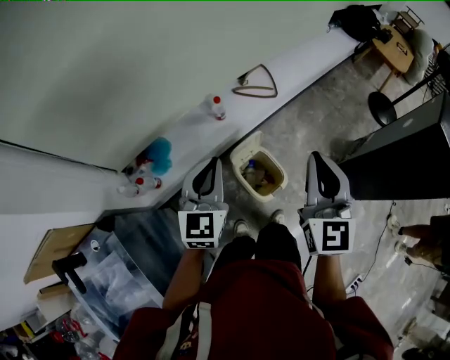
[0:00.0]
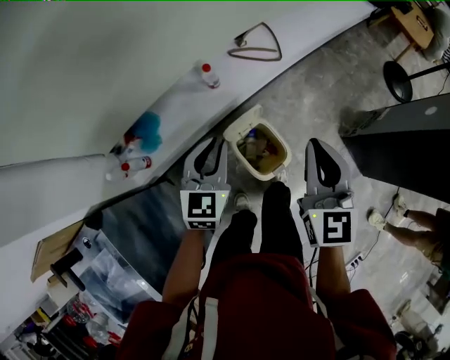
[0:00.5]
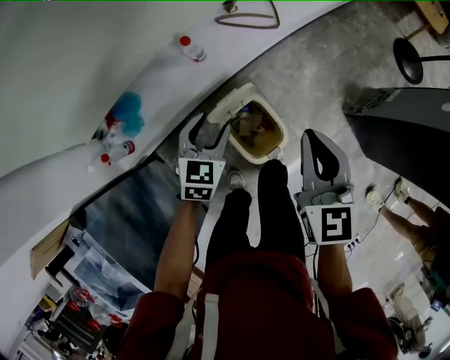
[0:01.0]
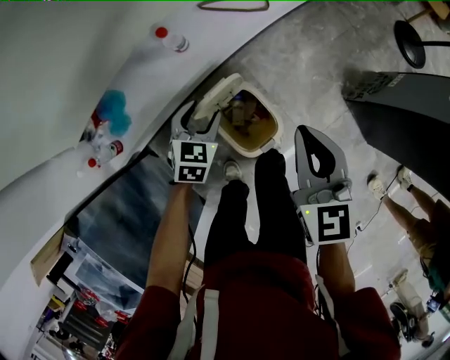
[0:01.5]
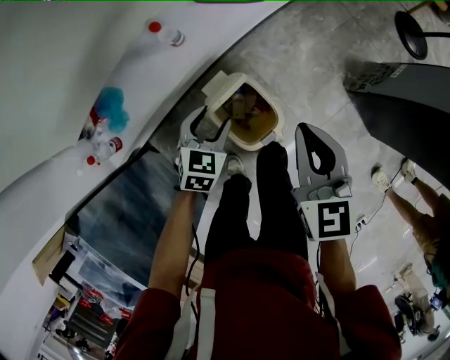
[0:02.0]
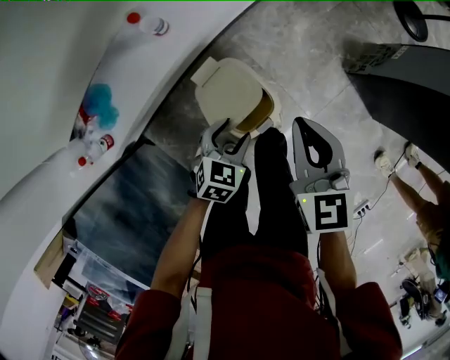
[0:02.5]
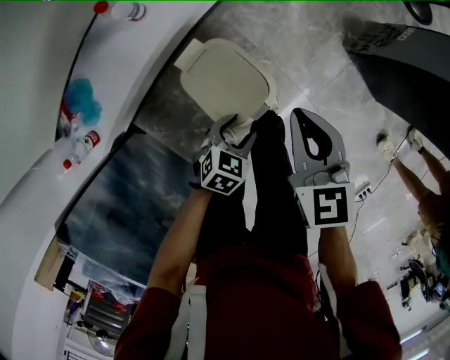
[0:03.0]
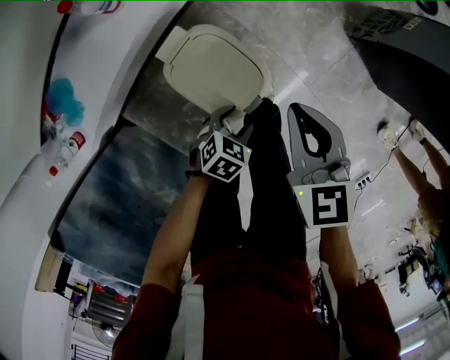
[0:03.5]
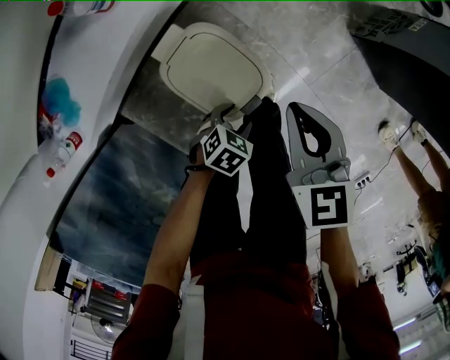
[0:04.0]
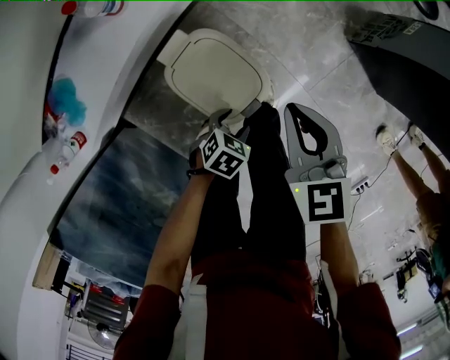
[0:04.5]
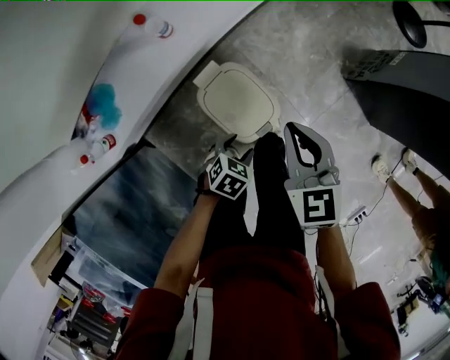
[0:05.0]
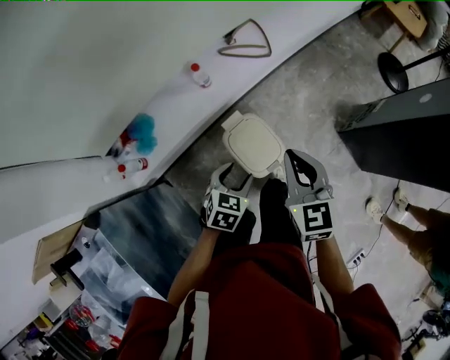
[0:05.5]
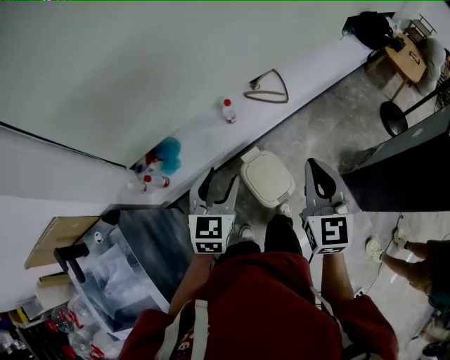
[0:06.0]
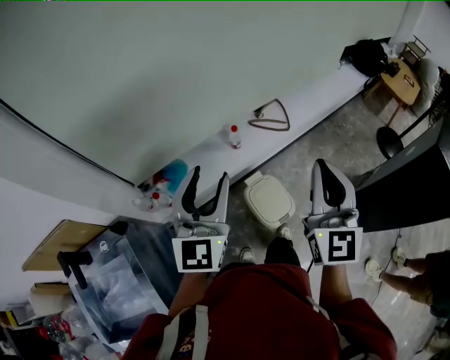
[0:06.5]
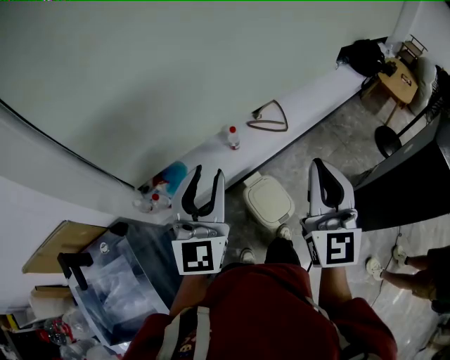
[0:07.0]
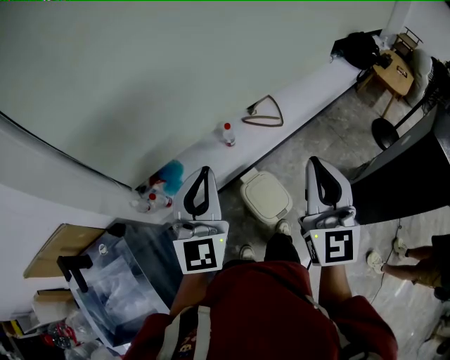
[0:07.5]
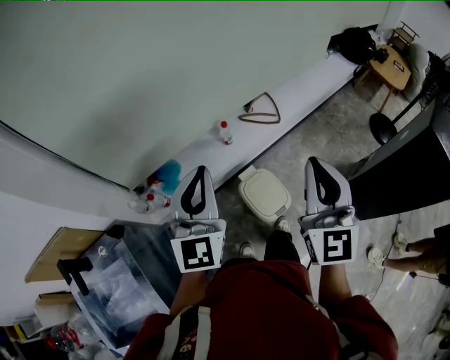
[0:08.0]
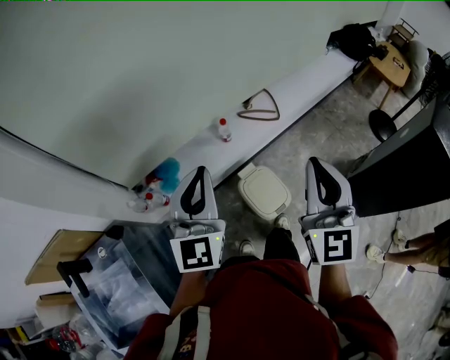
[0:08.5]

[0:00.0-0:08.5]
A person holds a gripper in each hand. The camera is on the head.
0:00.0 to 0:02.0: Both grippers move downward, some 30 cm. The left gripper points its fingers about 40 degrees further downward, and opens up. The right gripper rotates about 30 degrees.
0:02.0 to 0:04.0: Both grippers travel together downward, approximately 20 cm. The left gripper changes its angle by approximately 40 degrees.
0:04.0 to 0:06.5: Both grippers travel together upward, some 60 cm. The left gripper tips its fingers upward by about 70 degrees. Meanwhile the right gripper angles its fingers upward, by approximately 50 degrees.
0:06.5 to 0:08.5: The left gripper closes.

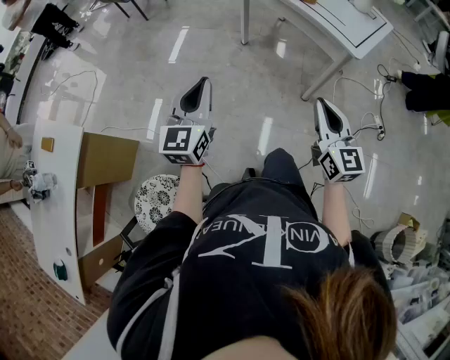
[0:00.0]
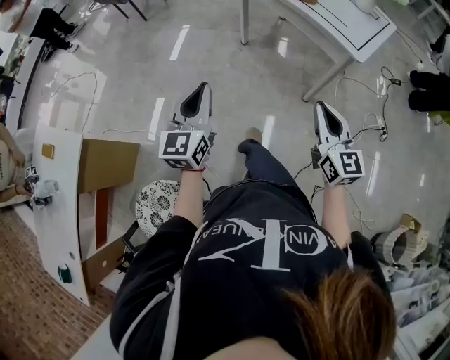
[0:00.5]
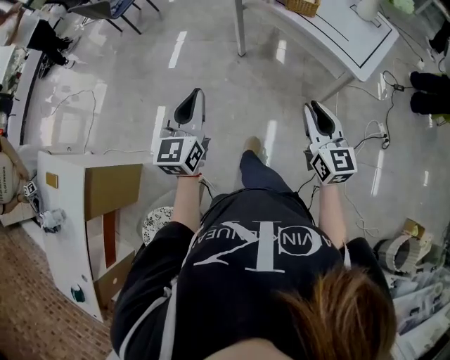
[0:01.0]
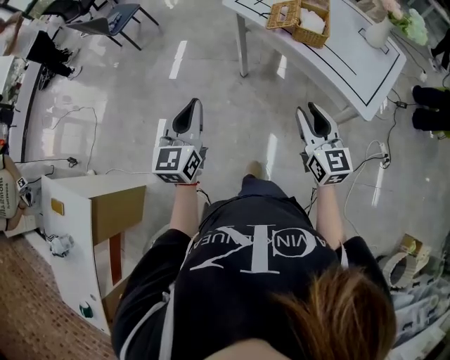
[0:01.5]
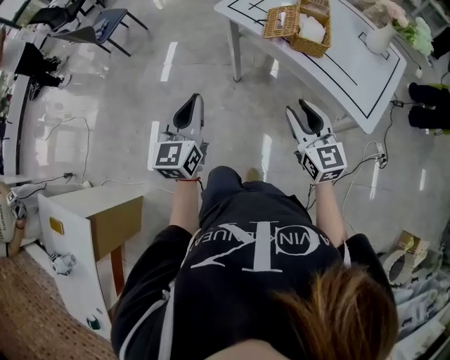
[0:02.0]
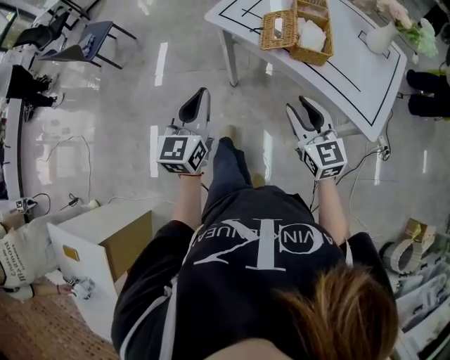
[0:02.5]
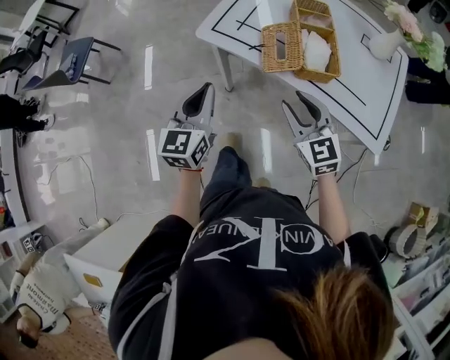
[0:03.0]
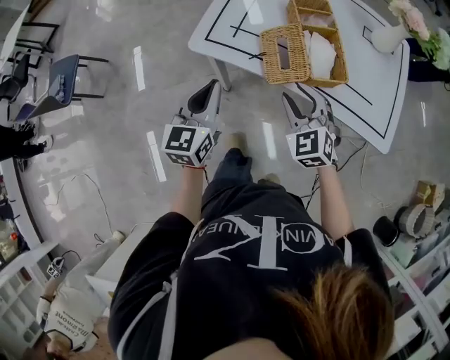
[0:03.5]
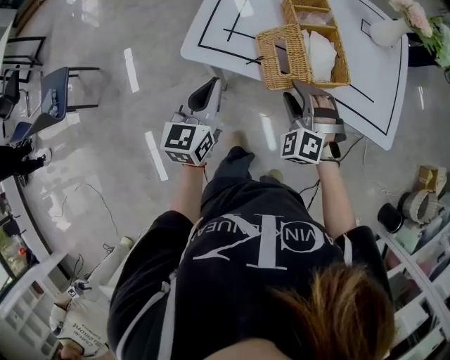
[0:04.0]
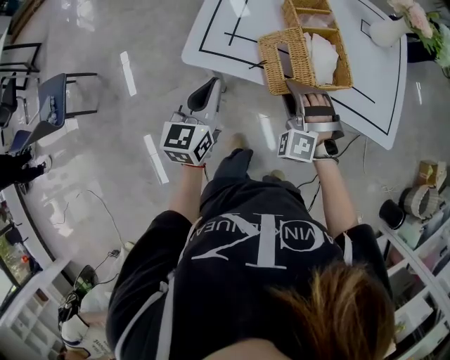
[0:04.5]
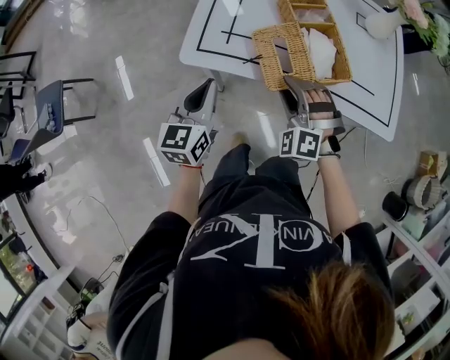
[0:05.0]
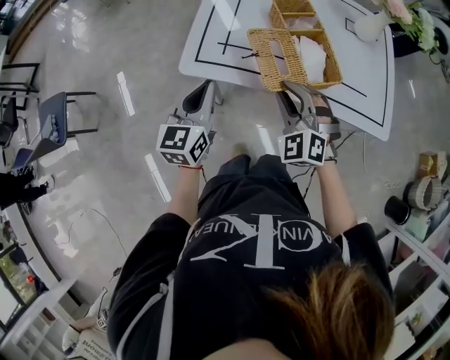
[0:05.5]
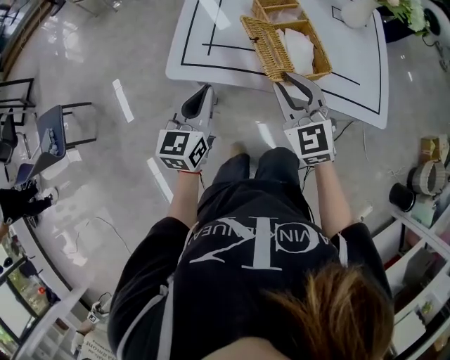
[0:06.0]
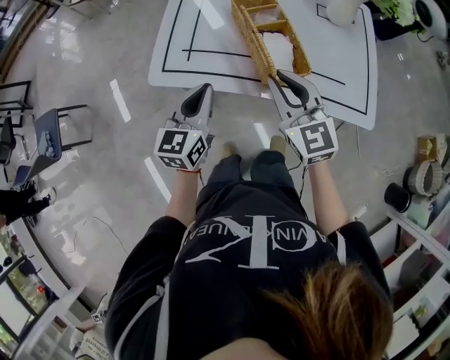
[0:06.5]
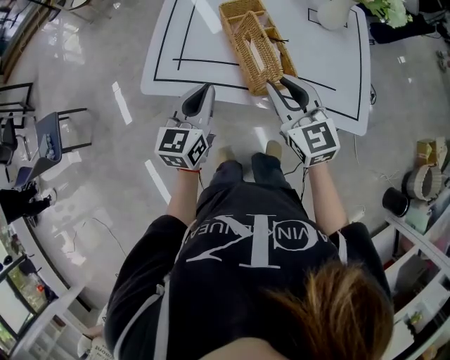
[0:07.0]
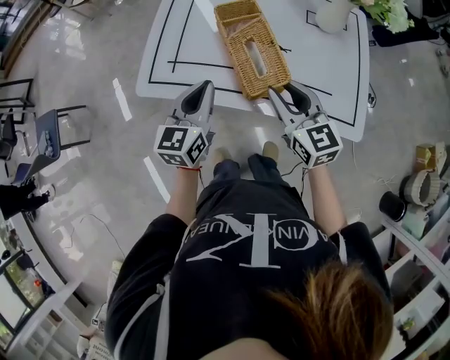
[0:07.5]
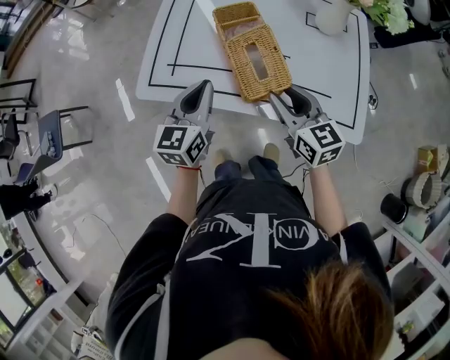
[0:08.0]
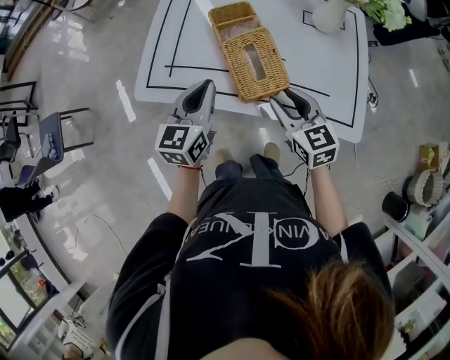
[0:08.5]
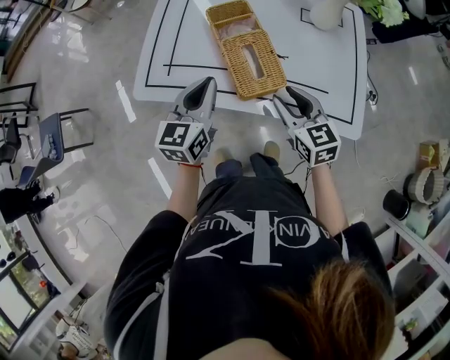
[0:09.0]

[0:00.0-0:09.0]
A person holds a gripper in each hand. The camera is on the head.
0:00.0 to 0:02.0: The two grippers go roughly 35 cm forward. The right gripper opens its fingers.
0:02.0 to 0:04.5: The left gripper shifts by roughly 40 cm, and changes its angle by approximately 30 degrees, while the right gripper moves roughly 35 cm, and rotates approximately 80 degrees.
0:04.5 to 0:07.0: The right gripper goes approximately 15 cm upward and to the right, twists some 70 degrees clockwise, seen from behind, and closes, while the left gripper moves to the right, roughly 15 cm.
0:07.0 to 0:09.0: The left gripper changes place by some 5 cm; the right gripper shifts some 10 cm to the right and downward.

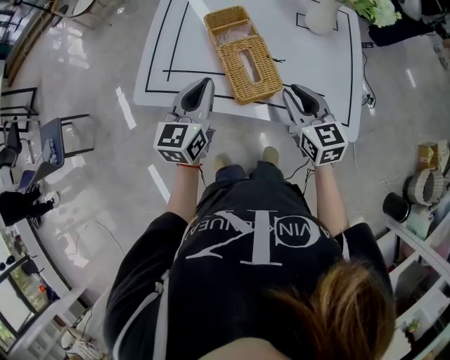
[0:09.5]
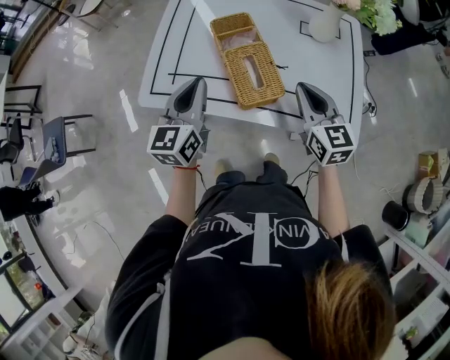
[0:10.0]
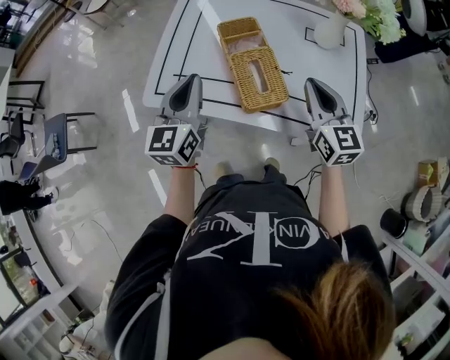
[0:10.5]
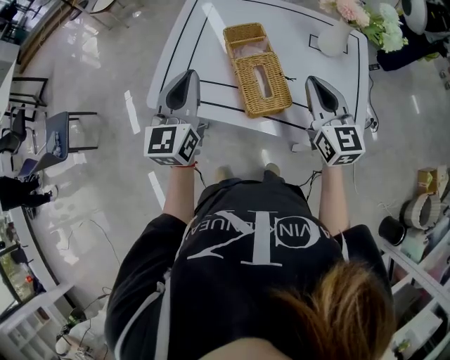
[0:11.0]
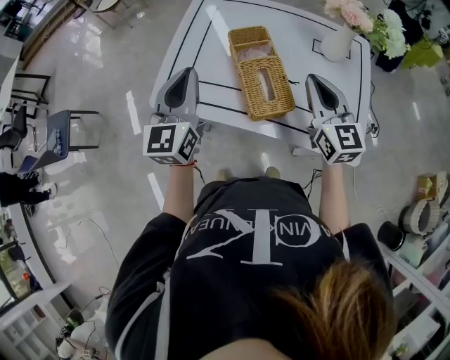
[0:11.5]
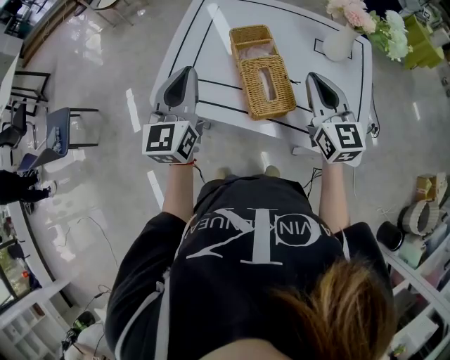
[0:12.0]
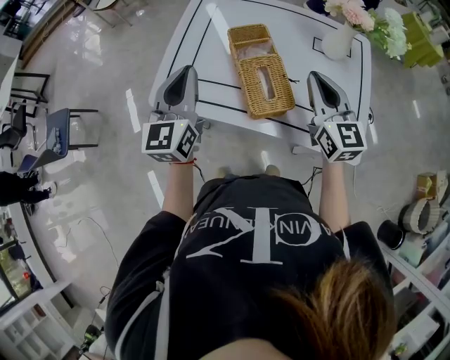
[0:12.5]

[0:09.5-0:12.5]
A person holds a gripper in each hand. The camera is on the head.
0:09.5 to 0:11.0: The right gripper moves upward, roughly 10 cm, and closes; the left gripper moves upward and to the left, approximately 10 cm.
0:11.0 to 0:12.5: The grippers move only a little.

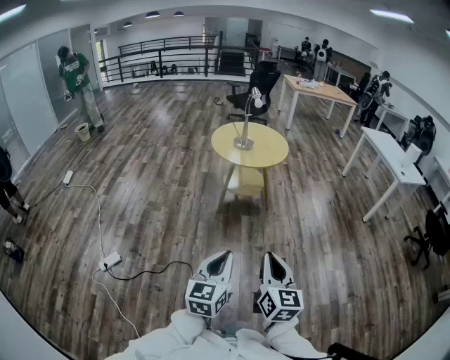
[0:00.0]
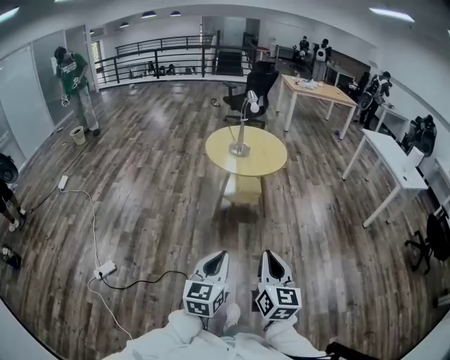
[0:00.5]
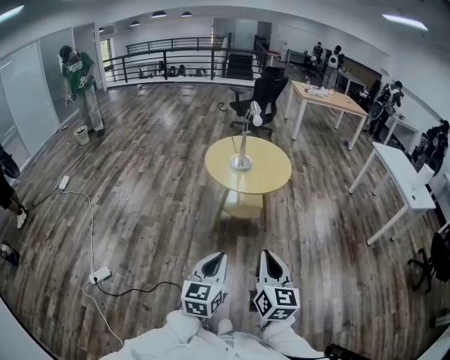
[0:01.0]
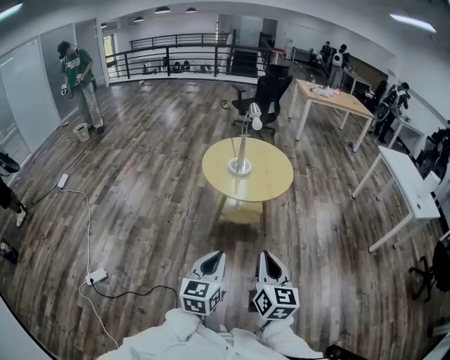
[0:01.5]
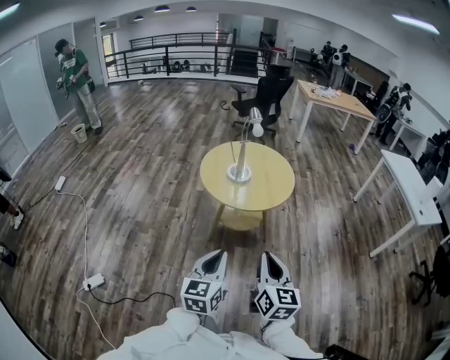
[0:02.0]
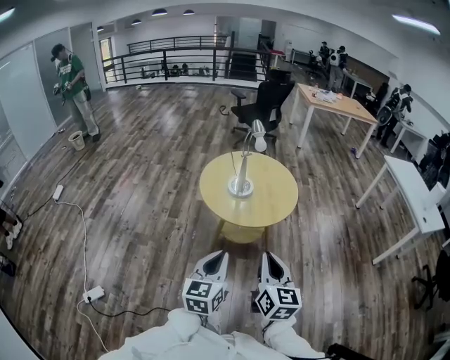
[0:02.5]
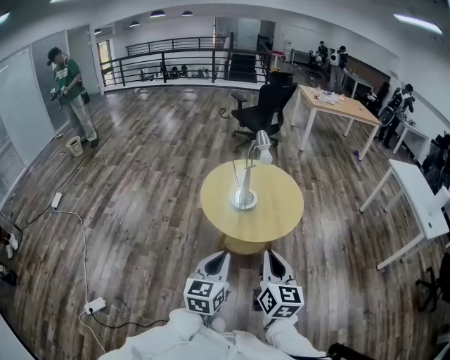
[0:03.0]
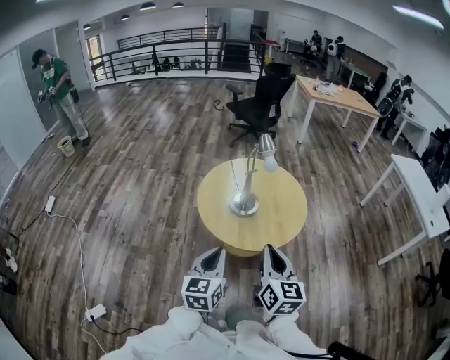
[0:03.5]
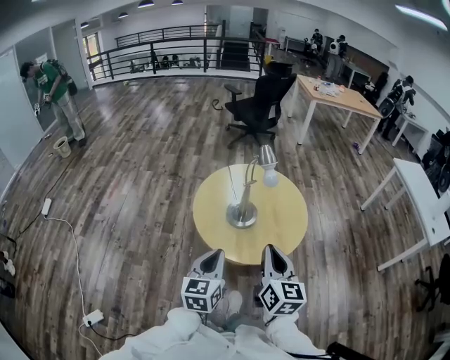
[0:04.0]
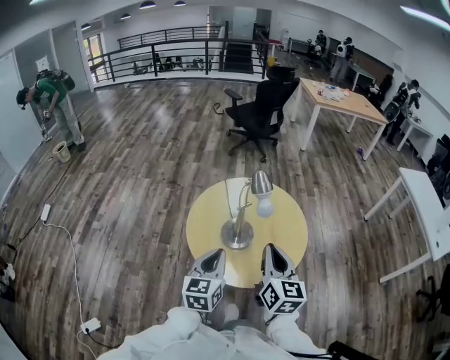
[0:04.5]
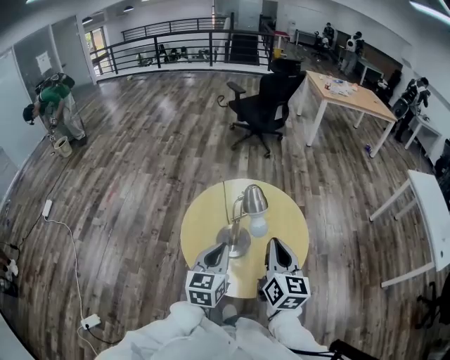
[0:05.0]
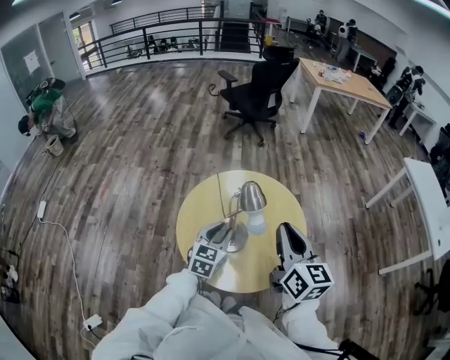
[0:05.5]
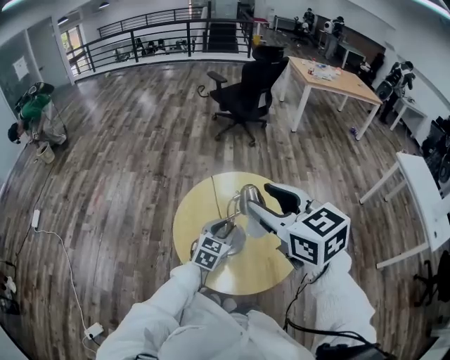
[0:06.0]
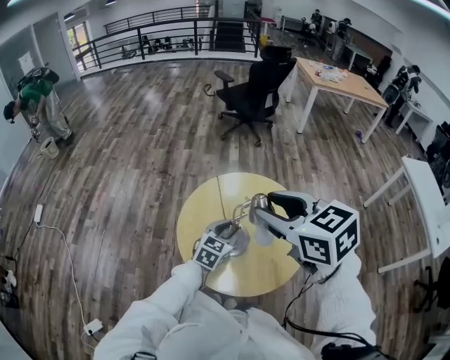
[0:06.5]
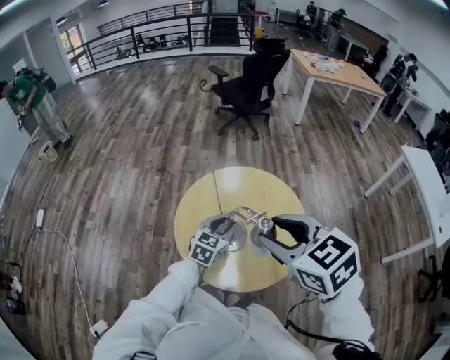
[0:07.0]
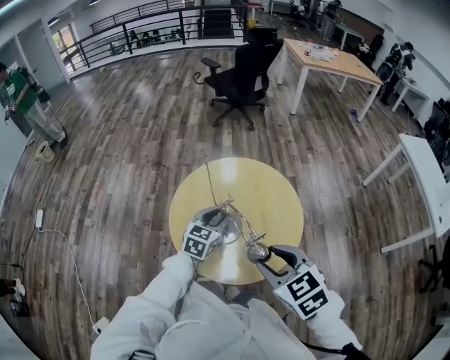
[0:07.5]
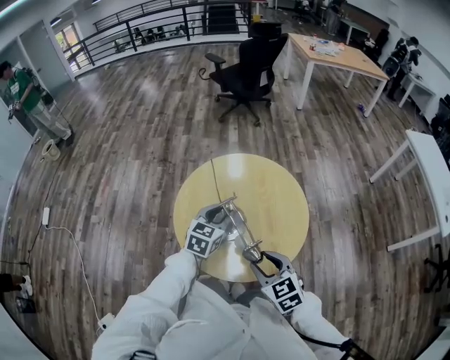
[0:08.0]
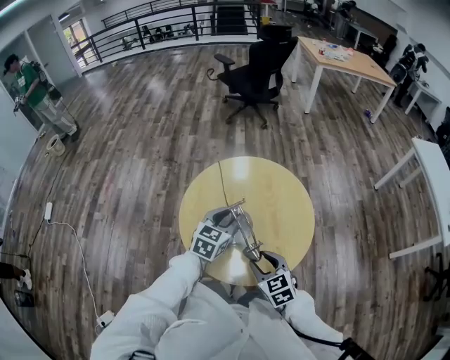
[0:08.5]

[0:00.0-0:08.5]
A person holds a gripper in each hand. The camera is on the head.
0:00.0 to 0:02.0: The grippers both shift forward by approximately 40 cm.
0:02.0 to 0:04.0: The grippers both shift forward by approximately 35 cm.
0:04.0 to 0:06.5: The left gripper shifts approximately 30 cm forward, swivels about 30 degrees, and opens. The right gripper travels forward and upward by roughly 30 cm, swivels approximately 40 degrees, and opens up.
0:06.5 to 0:08.5: The right gripper moves downward, about 30 cm.
